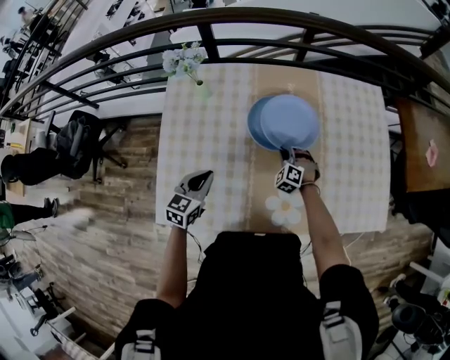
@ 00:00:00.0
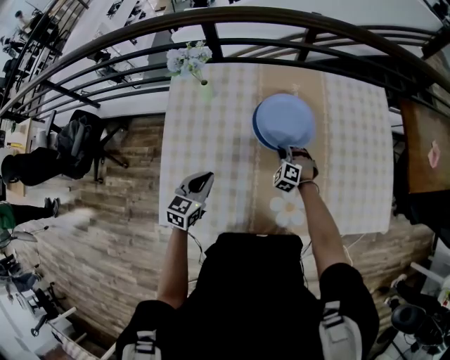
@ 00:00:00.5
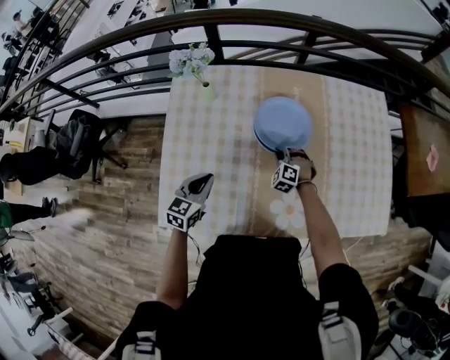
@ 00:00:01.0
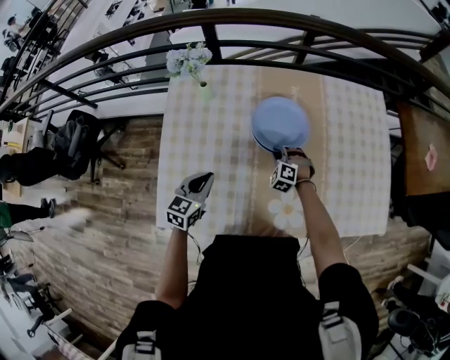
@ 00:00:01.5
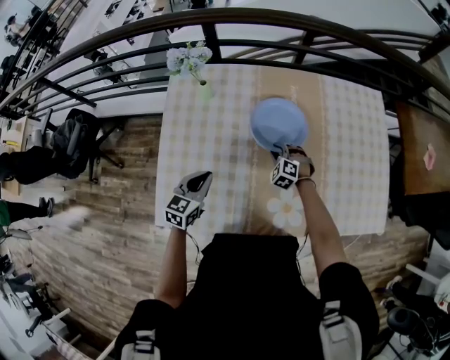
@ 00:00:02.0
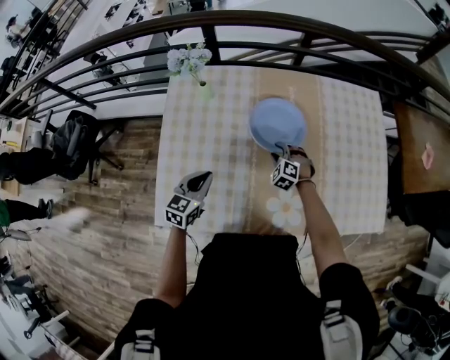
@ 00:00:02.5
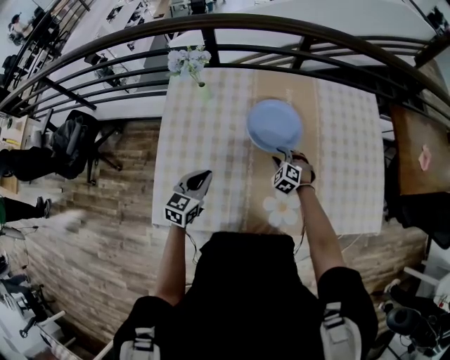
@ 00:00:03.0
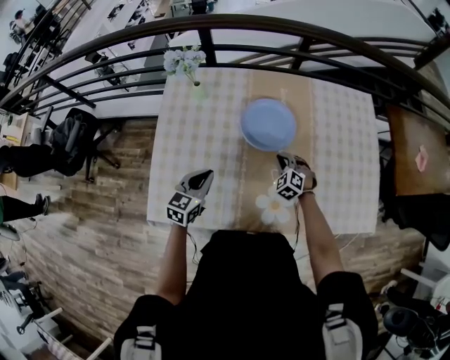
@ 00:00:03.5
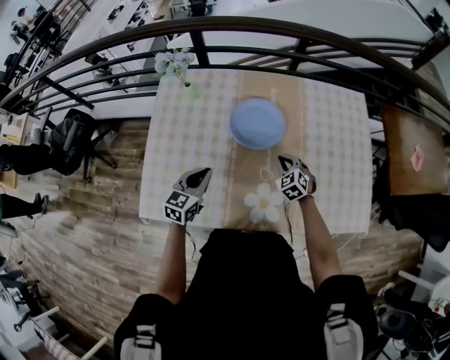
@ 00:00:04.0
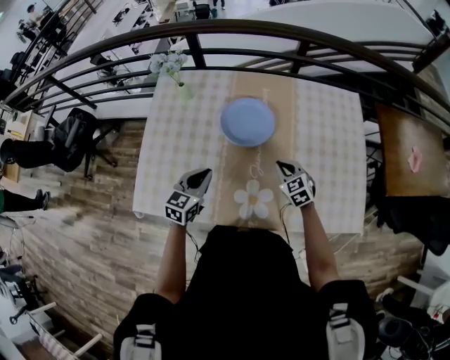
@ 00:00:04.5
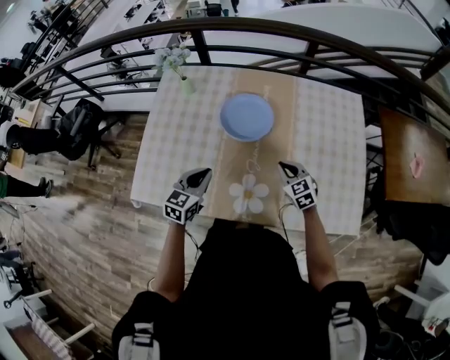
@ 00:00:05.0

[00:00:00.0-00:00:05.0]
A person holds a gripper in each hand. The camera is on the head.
00:00:00.0 to 00:00:02.5: The right gripper opens.
00:00:02.5 to 00:00:05.0: The right gripper travels to the right, upward and backward by about 25 cm, turns by about 40 degrees, and closes, while the left gripper heads to the right, covering some 15 cm.

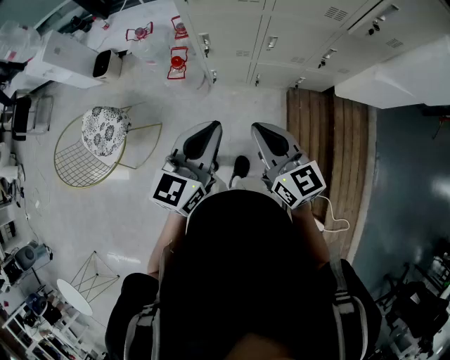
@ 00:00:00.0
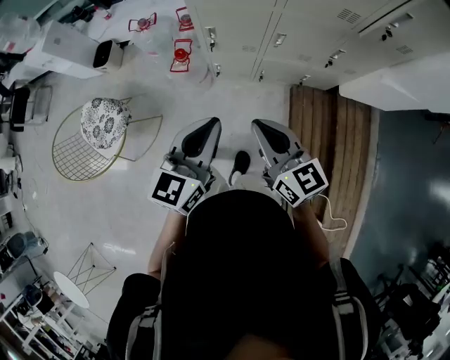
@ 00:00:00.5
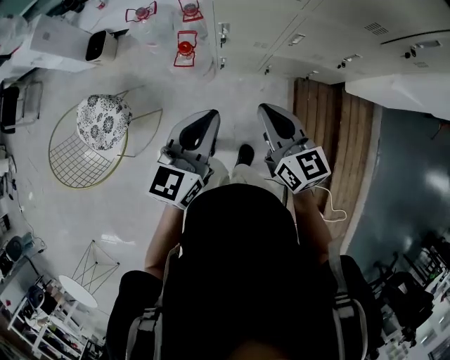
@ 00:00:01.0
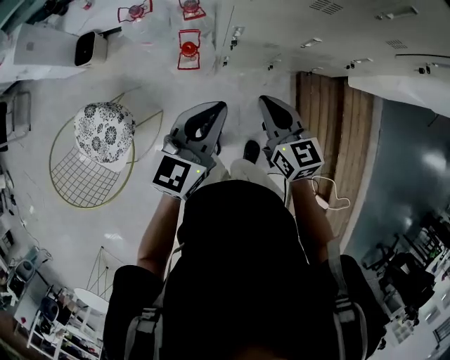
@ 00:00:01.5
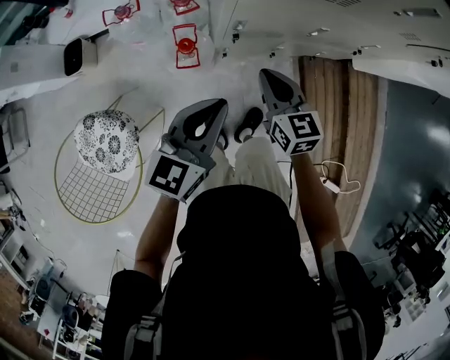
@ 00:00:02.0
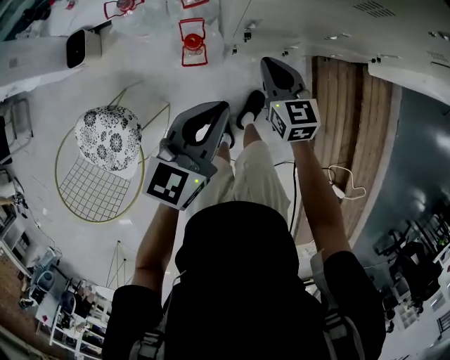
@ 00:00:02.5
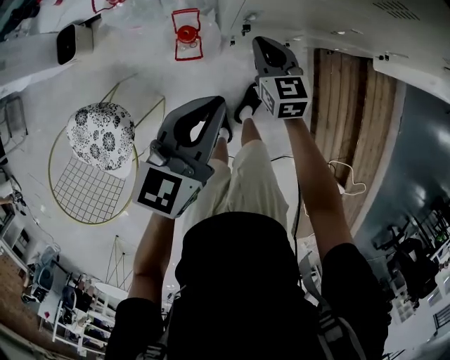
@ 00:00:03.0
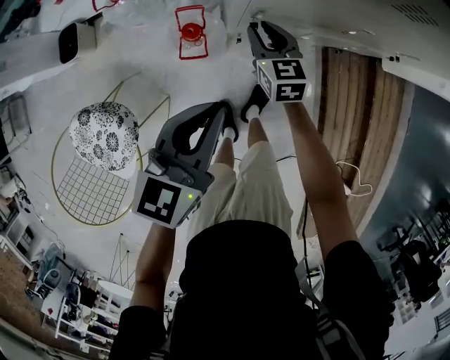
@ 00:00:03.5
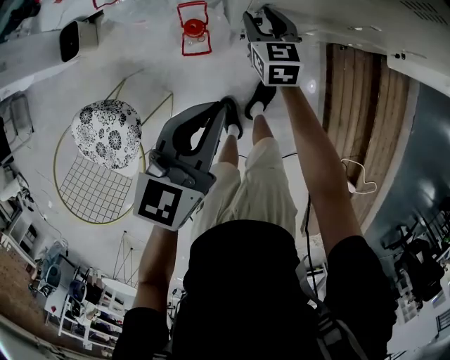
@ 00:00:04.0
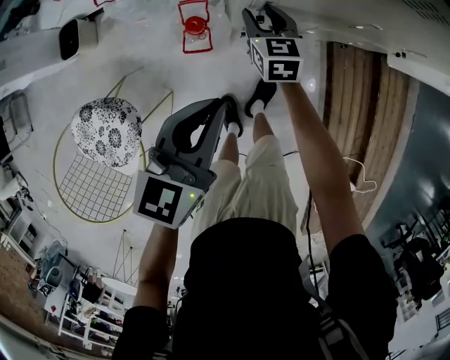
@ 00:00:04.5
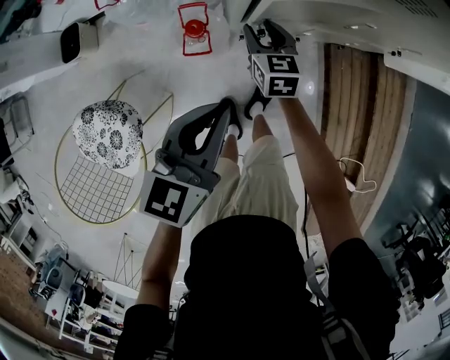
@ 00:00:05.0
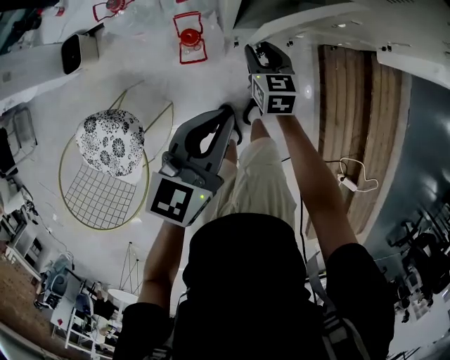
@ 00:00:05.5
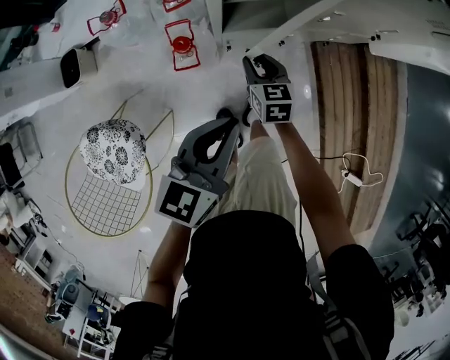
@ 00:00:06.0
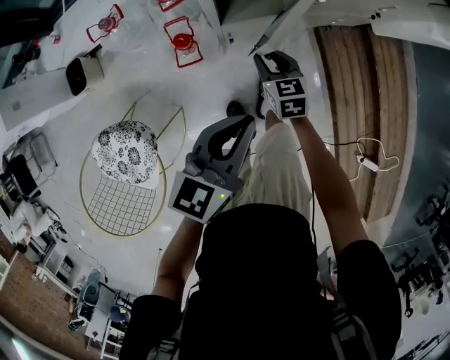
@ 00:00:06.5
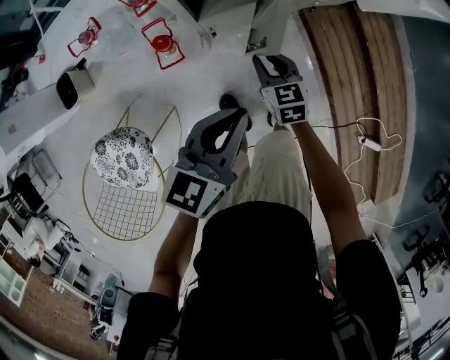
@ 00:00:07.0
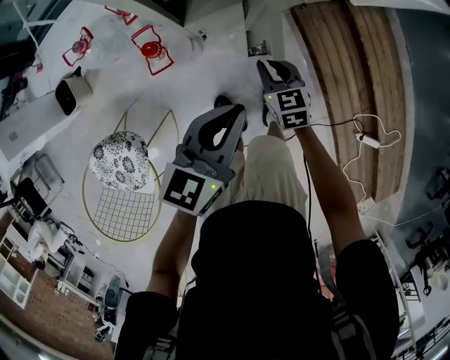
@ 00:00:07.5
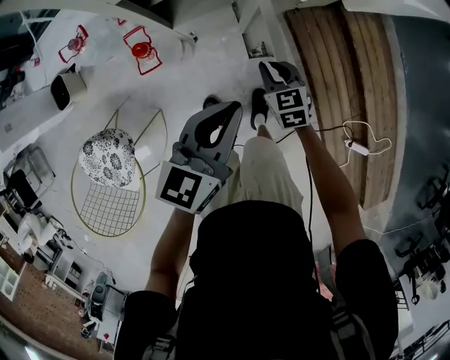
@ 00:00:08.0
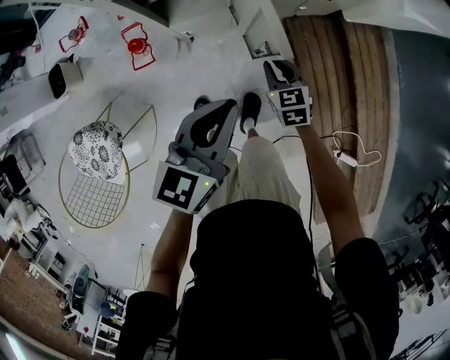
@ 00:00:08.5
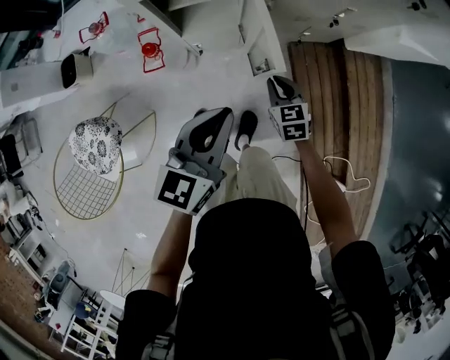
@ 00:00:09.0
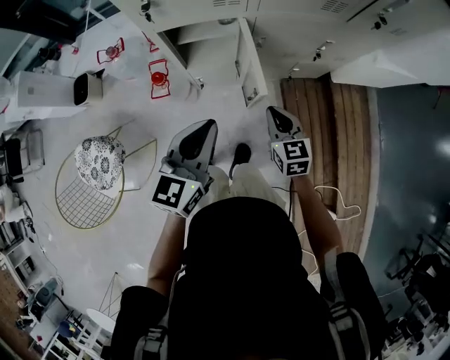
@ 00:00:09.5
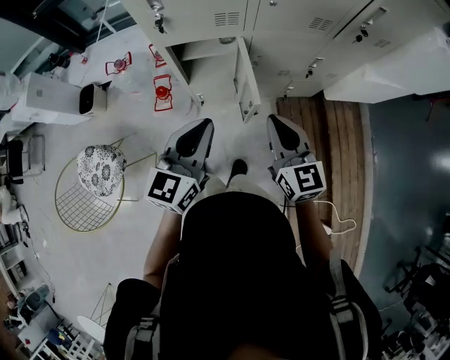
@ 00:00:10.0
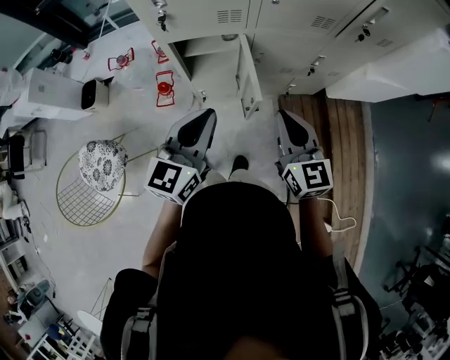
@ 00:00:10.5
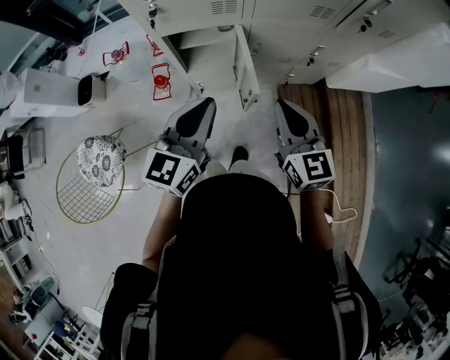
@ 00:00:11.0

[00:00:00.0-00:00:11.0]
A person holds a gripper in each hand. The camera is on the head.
00:00:00.0 to 00:00:02.0: Both grippers travel together forward, to the left and downward, approximately 35 cm. The right gripper changes its angle by approximately 20 degrees.
00:00:02.0 to 00:00:03.5: The left gripper is displaced downward by roughly 10 cm, while the right gripper goes roughly 20 cm downward and forward, and opens.
00:00:03.5 to 00:00:05.5: The right gripper moves roughly 5 cm.
00:00:05.5 to 00:00:07.5: The right gripper heads to the right and backward, covering some 20 cm. The left gripper shifts approximately 15 cm to the right.
00:00:07.5 to 00:00:09.0: The left gripper shifts approximately 10 cm to the right and upward, while the right gripper heads to the right, covering about 10 cm.
00:00:09.0 to 00:00:11.0: The left gripper goes some 10 cm upward. Meanwhile the right gripper is displaced upward by some 30 cm, and angles its fingers upward, by about 30 degrees.

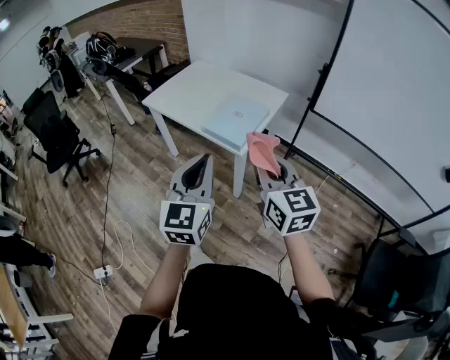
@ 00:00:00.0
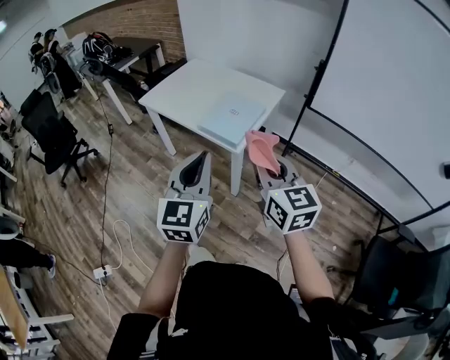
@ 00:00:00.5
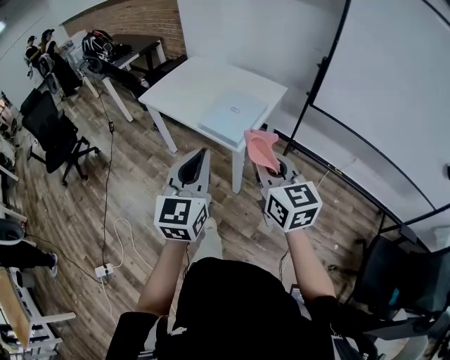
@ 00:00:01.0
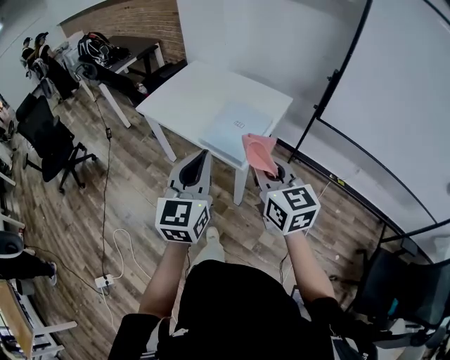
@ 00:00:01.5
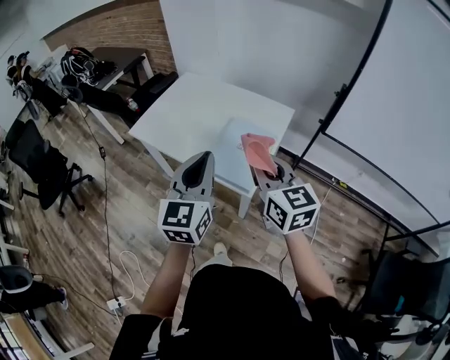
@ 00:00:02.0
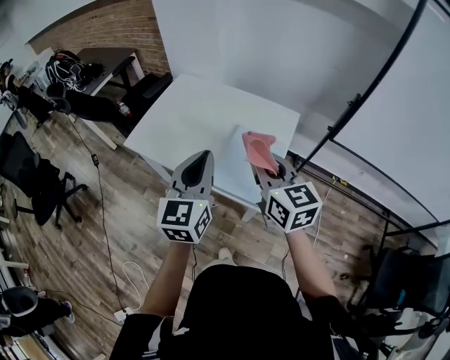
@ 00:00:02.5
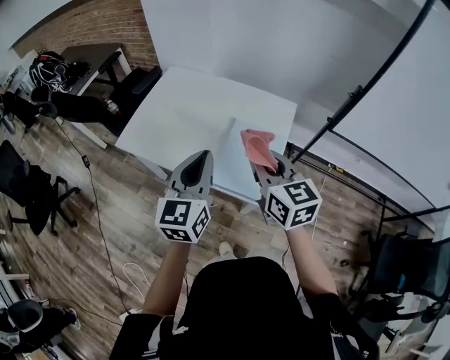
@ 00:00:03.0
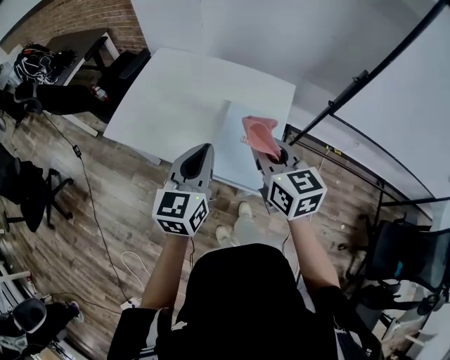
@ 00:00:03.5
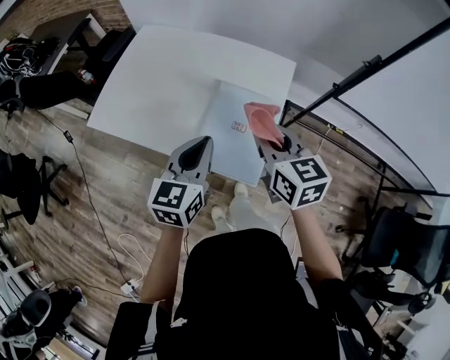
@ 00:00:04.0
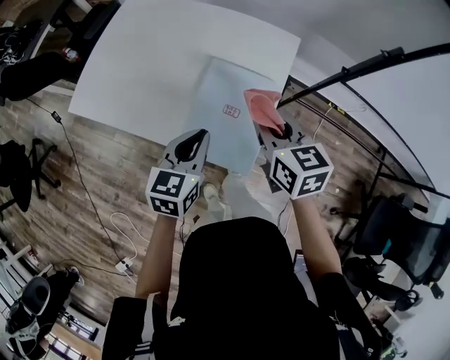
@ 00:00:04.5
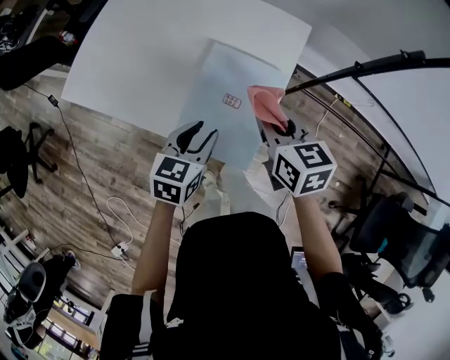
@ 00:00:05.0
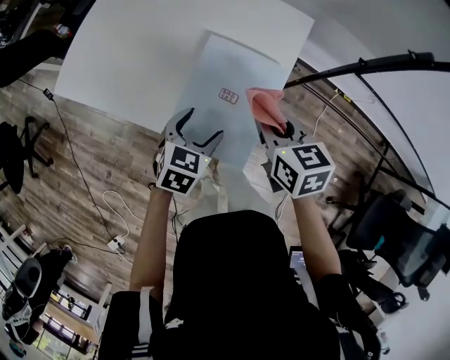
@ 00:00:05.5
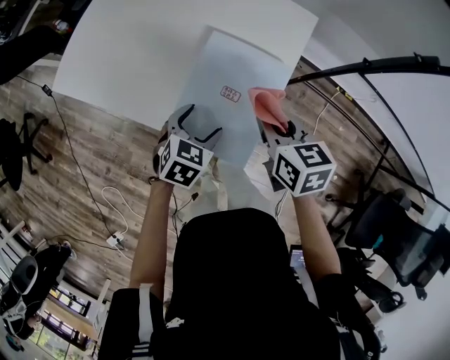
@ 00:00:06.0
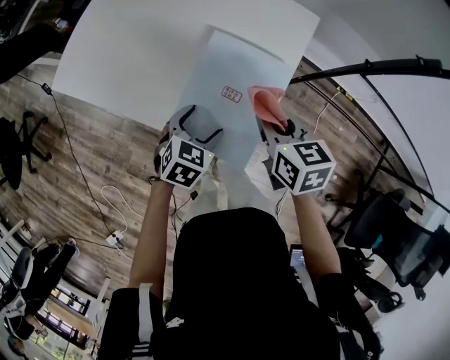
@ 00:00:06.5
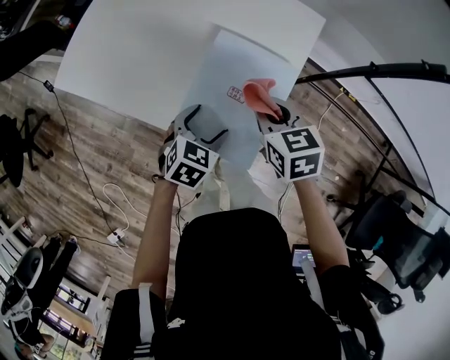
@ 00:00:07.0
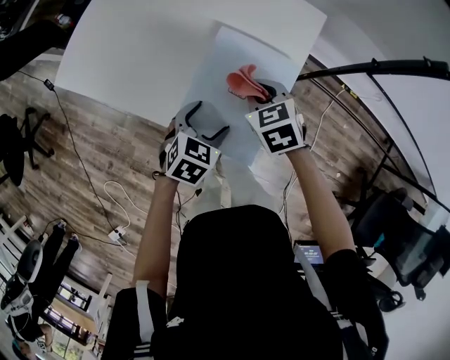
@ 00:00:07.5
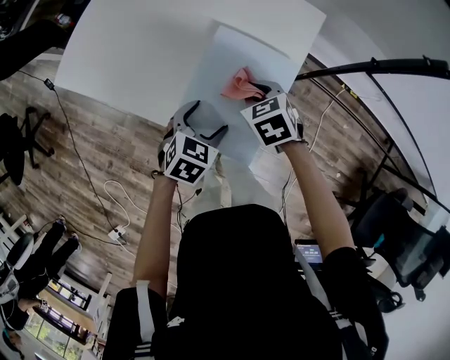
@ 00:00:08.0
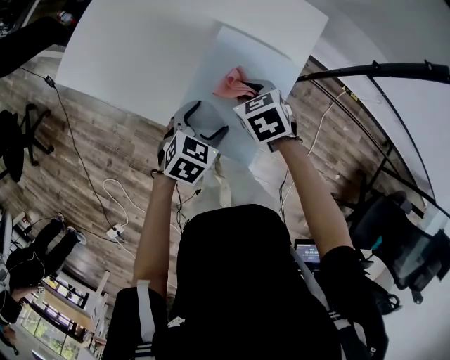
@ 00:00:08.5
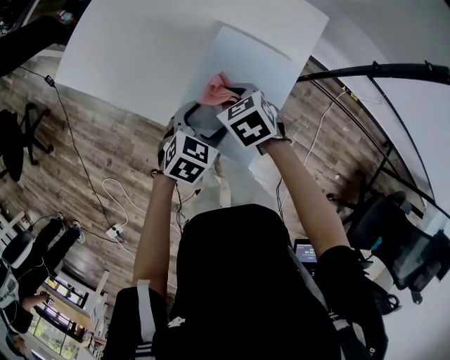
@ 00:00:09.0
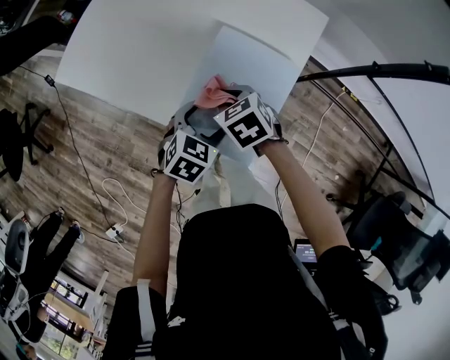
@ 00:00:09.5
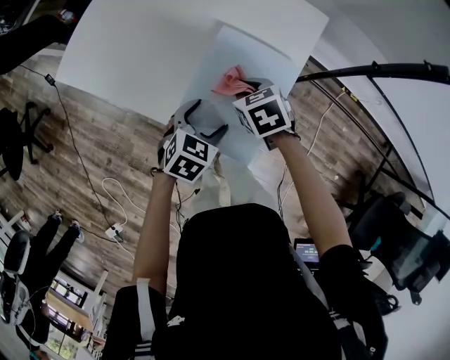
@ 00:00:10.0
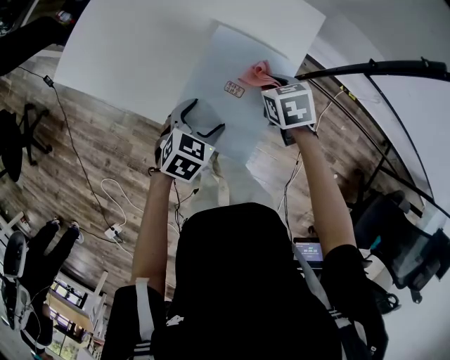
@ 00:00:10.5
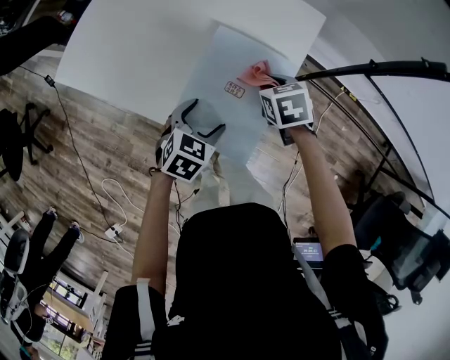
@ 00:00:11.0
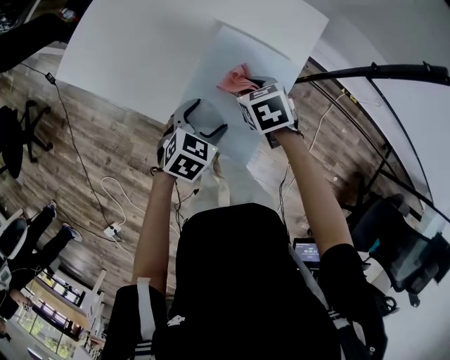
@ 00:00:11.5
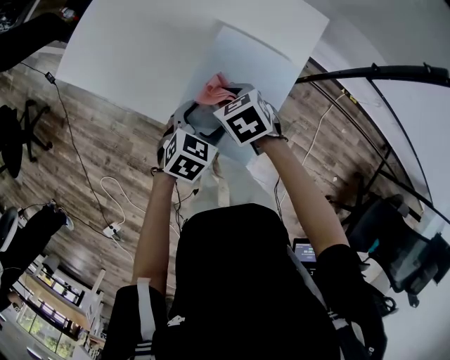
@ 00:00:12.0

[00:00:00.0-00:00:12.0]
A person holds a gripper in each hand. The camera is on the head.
00:00:00.0 to 00:00:02.0: The grippers both shift forward by some 25 cm.
00:00:02.0 to 00:00:04.0: Both grippers travel together forward and downward, approximately 25 cm. The left gripper rotates some 30 degrees.
00:00:04.0 to 00:00:06.0: Both grippers move downward, approximately 20 cm. The left gripper tips its fingers downward by about 30 degrees, and opens.
00:00:06.0 to 00:00:08.0: The right gripper shifts roughly 10 cm downward, and turns by some 30 degrees.
00:00:10.0 to 00:00:12.0: The right gripper shifts by roughly 5 cm.
